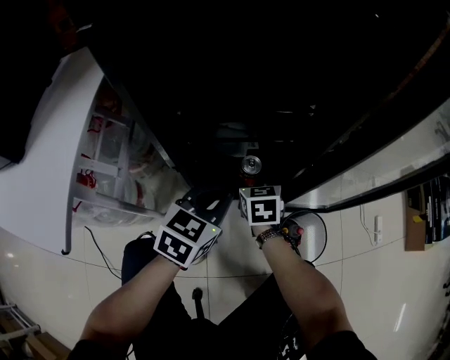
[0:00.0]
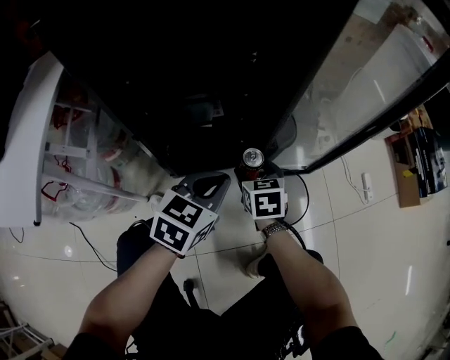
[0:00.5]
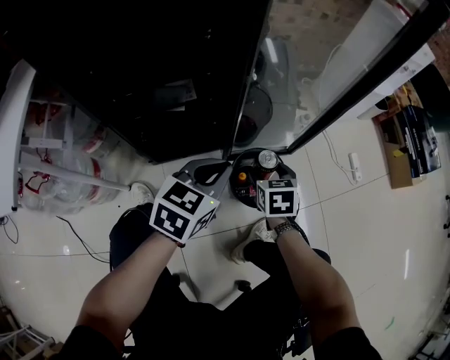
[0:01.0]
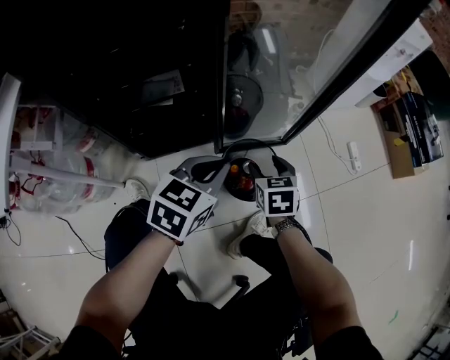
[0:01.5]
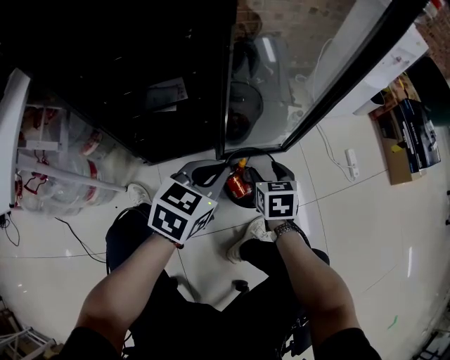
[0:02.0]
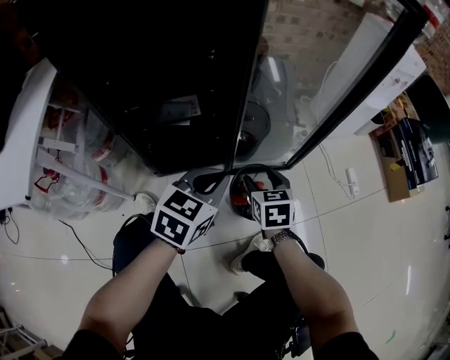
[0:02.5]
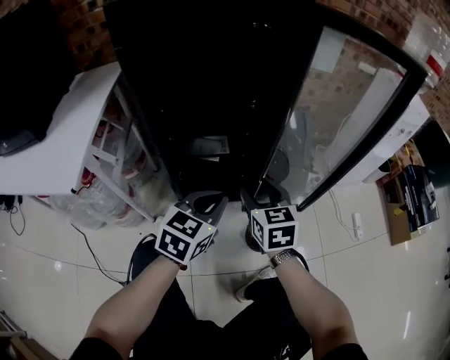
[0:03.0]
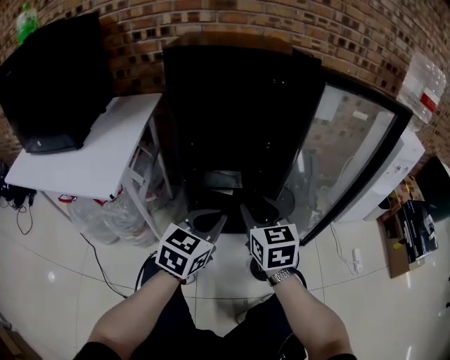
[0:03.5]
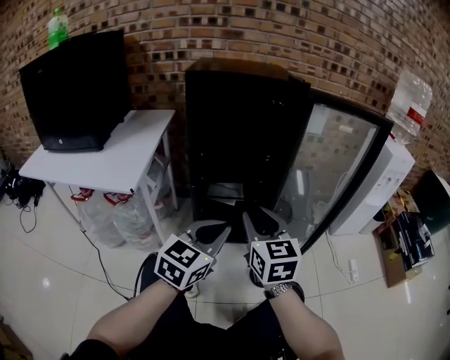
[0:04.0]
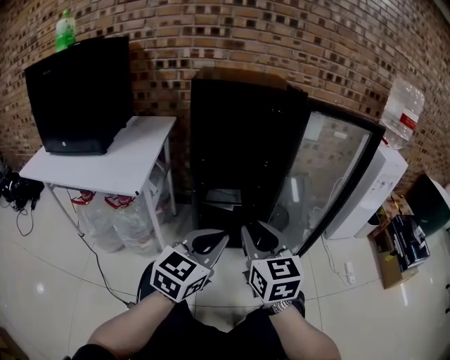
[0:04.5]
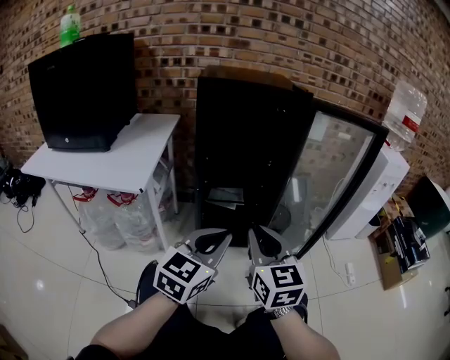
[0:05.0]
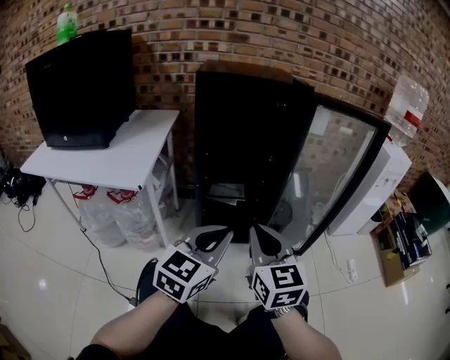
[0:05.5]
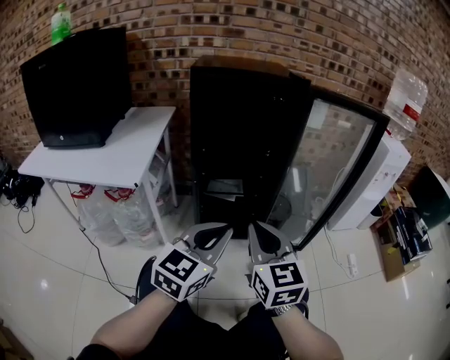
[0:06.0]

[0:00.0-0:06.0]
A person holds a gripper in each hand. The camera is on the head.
0:00.0 to 0:02.0: Both grippers move to the right, roughly 30 cm.
0:02.0 to 0:04.0: The left gripper heads upward, backward and to the left, covering some 30 cm, and changes its angle by about 30 degrees, while the right gripper goes some 40 cm upward, to the left and backward, angles its fingers upward, by about 40 degrees, and closes up.
0:04.0 to 0:06.0: The left gripper travels backward by about 5 cm; the right gripper is displaced backward by some 10 cm.

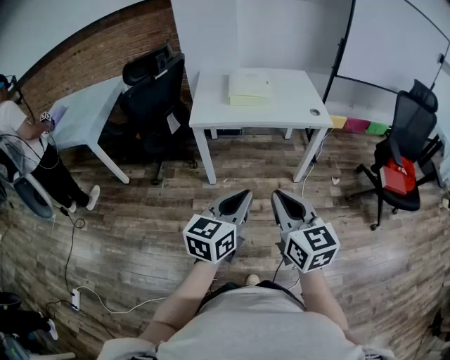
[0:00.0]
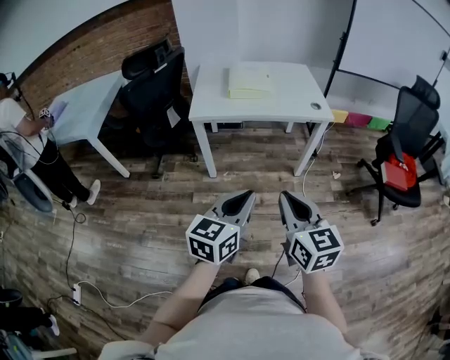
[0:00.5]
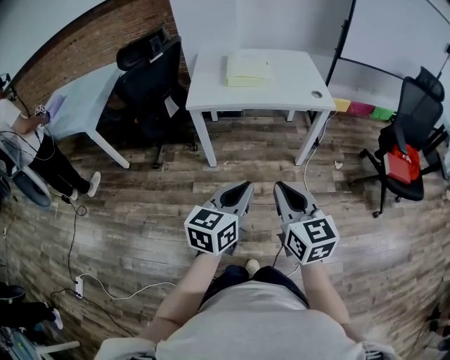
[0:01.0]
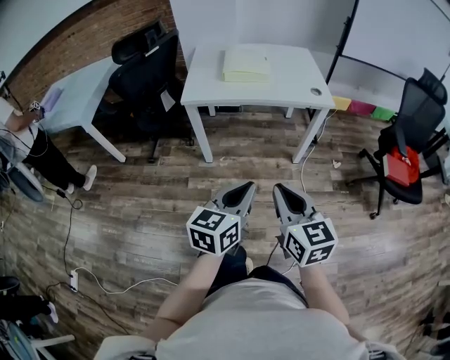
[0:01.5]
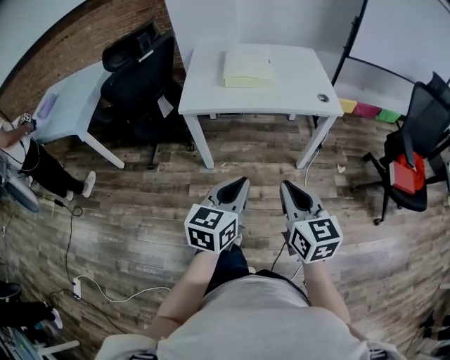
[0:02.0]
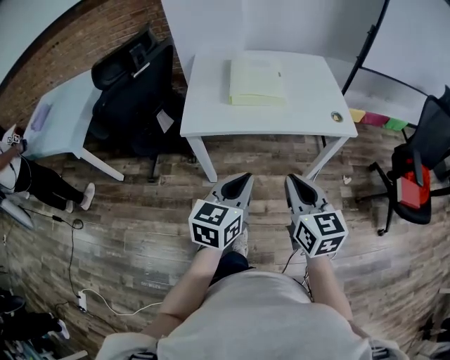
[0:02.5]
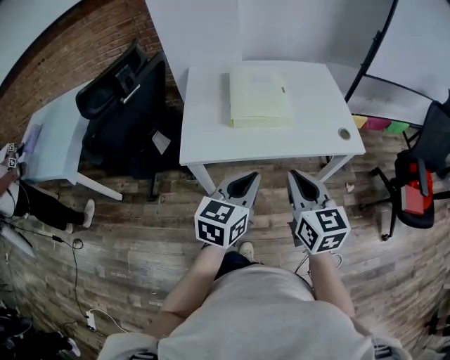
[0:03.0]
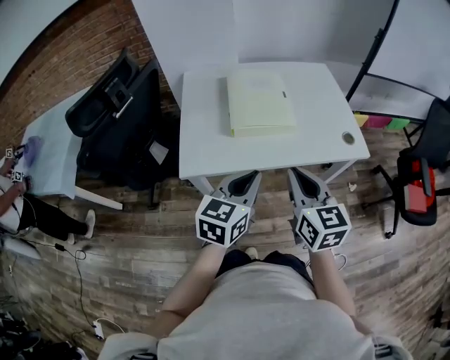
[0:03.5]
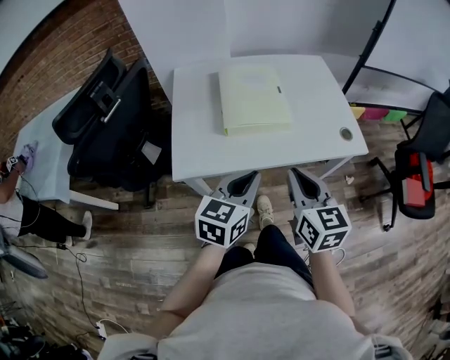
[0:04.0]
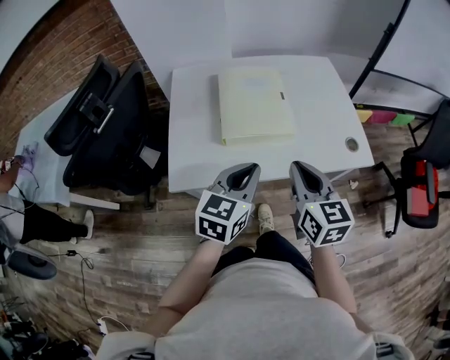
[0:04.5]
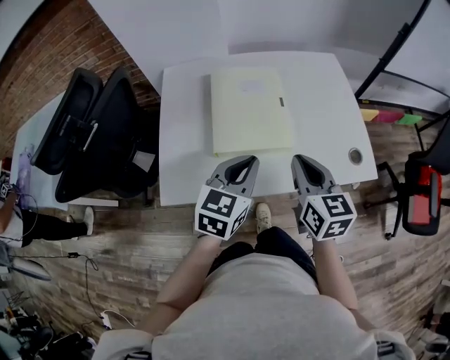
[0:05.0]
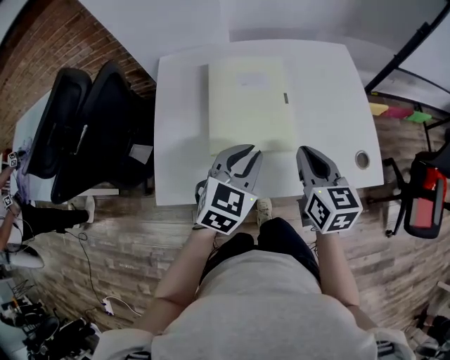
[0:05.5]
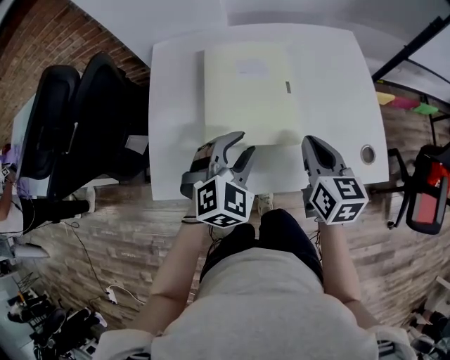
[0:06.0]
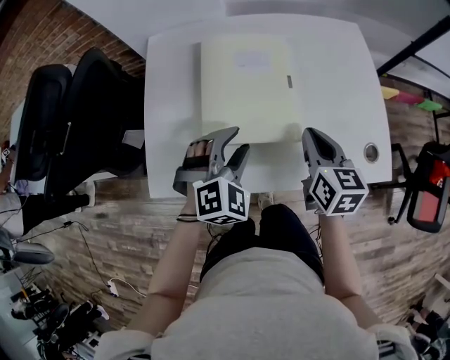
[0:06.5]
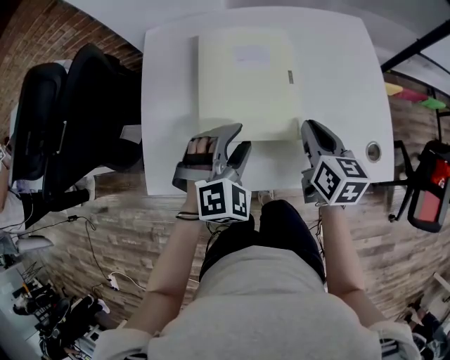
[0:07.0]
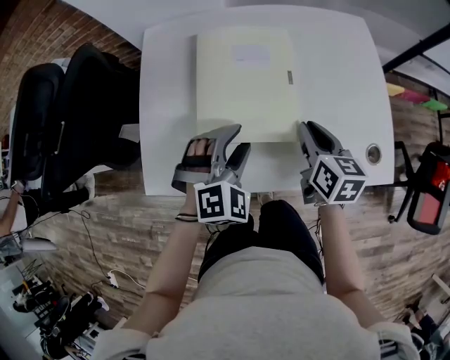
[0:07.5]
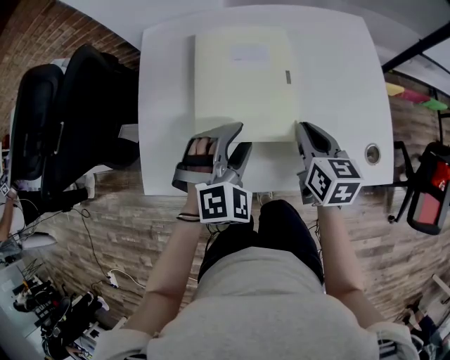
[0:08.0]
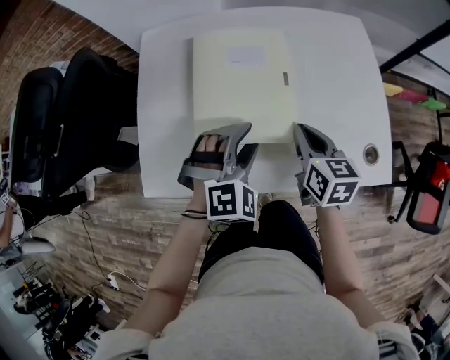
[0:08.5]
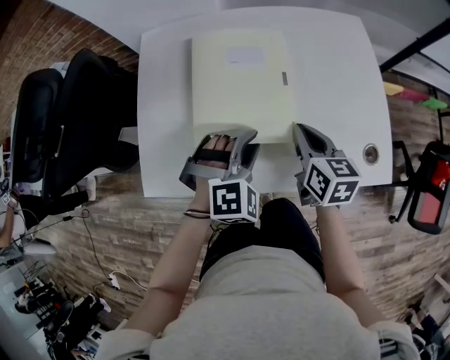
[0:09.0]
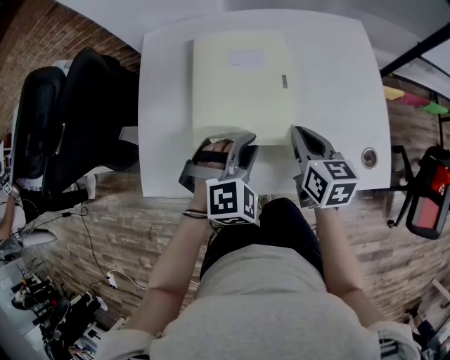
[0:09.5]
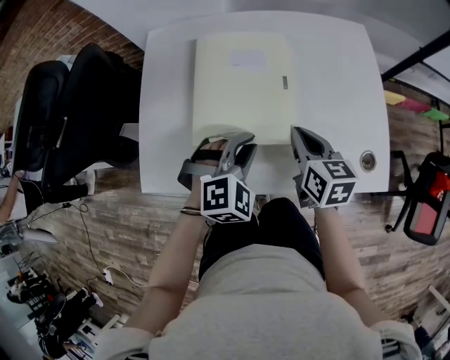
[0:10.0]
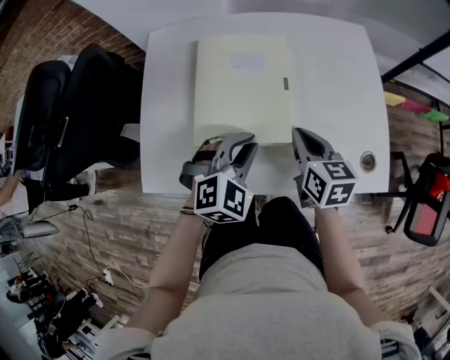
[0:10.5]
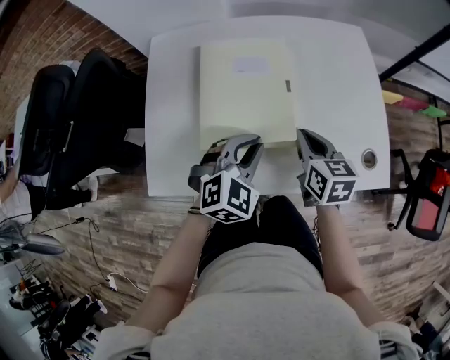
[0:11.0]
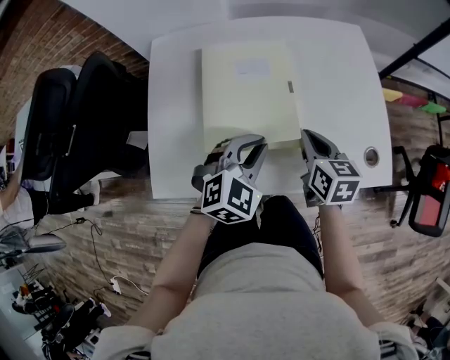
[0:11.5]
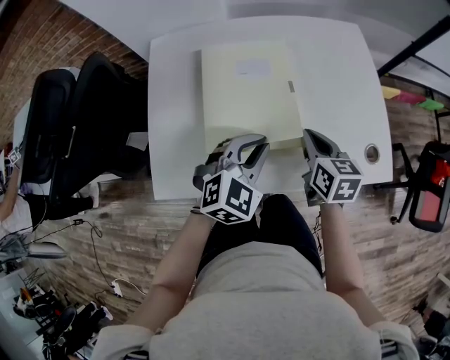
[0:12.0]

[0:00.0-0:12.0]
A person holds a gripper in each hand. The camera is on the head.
0:00.0 to 0:02.0: Both grippers move forward and downward, approximately 10 cm.
0:02.0 to 0:04.0: The two grippers go about 30 cm forward.
0:04.0 to 0:06.0: Both grippers travel together forward, roughly 20 cm. The left gripper twists approximately 40 degrees clockwise, seen from behind, and opens its fingers.
0:06.0 to 0:08.0: The right gripper shifts about 5 cm downward.
0:08.0 to 0:10.0: The left gripper closes up.
0:10.0 to 0:12.0: The left gripper rotates approximately 20 degrees.

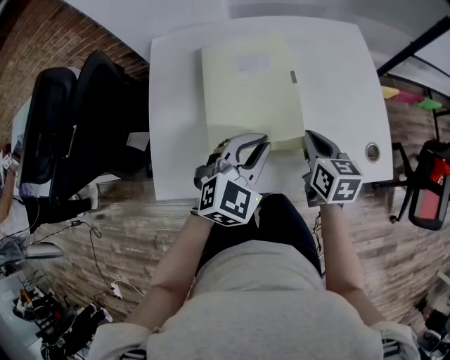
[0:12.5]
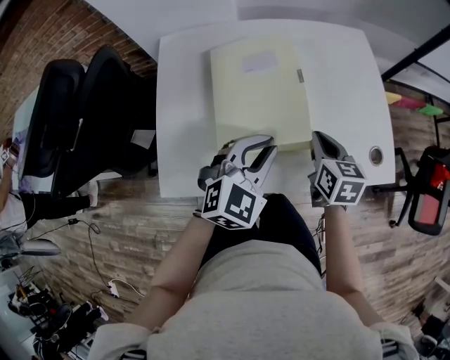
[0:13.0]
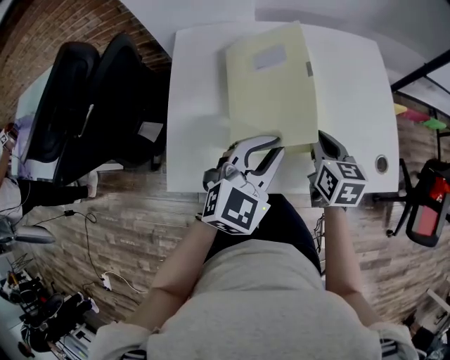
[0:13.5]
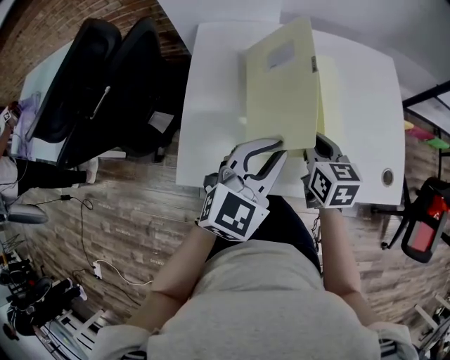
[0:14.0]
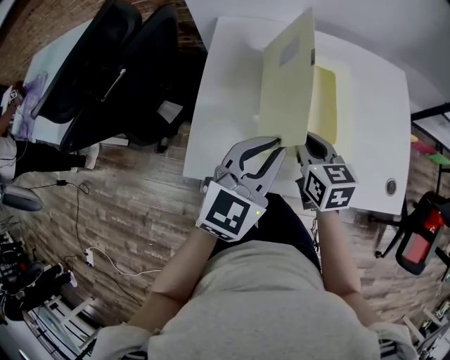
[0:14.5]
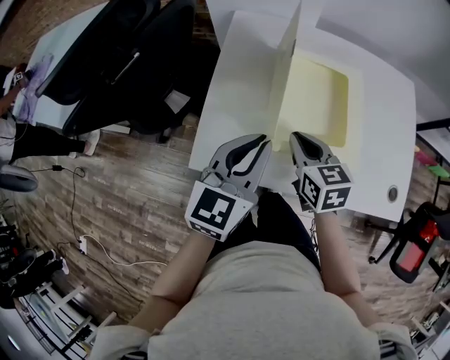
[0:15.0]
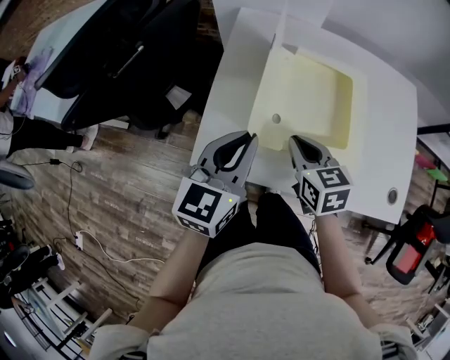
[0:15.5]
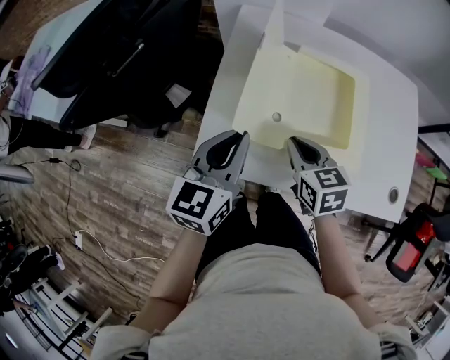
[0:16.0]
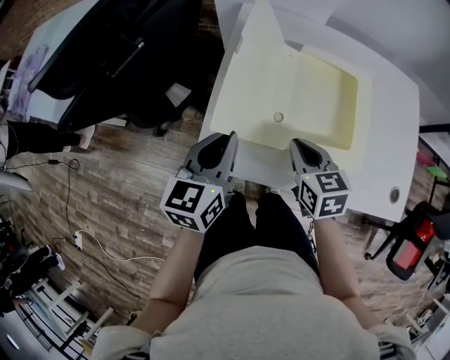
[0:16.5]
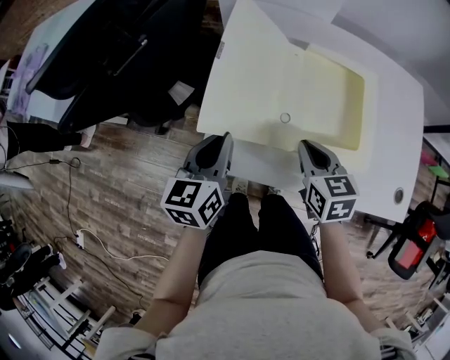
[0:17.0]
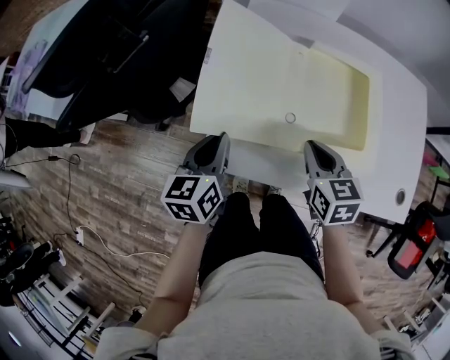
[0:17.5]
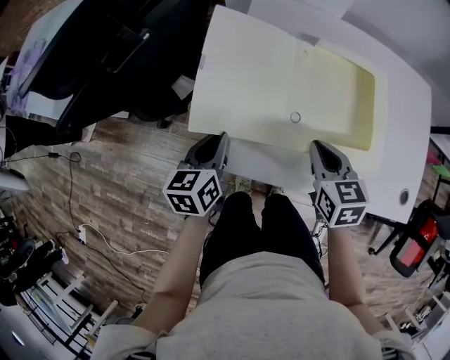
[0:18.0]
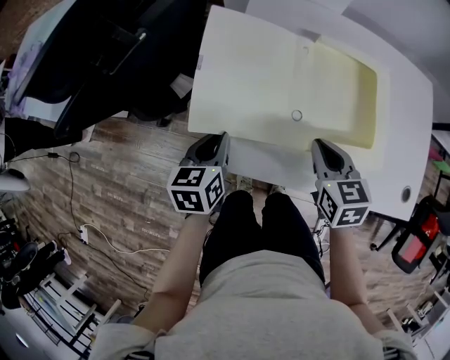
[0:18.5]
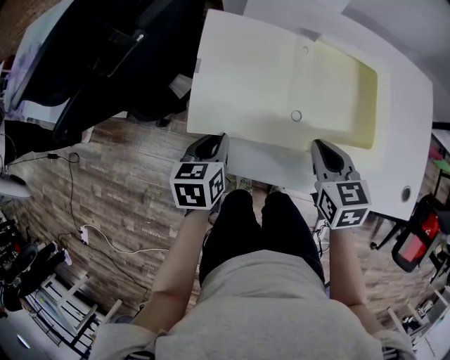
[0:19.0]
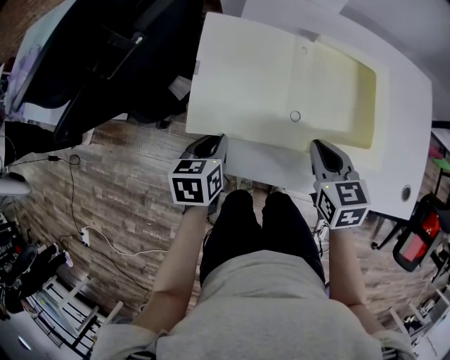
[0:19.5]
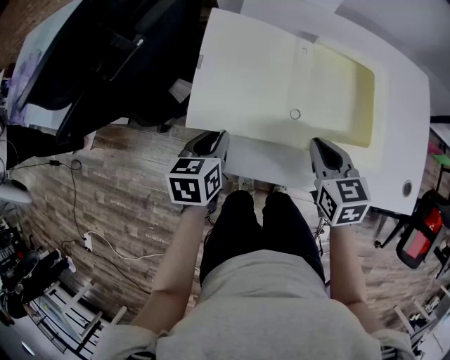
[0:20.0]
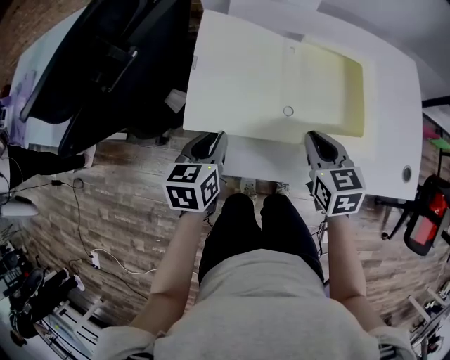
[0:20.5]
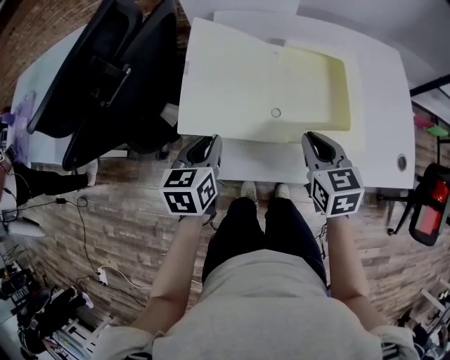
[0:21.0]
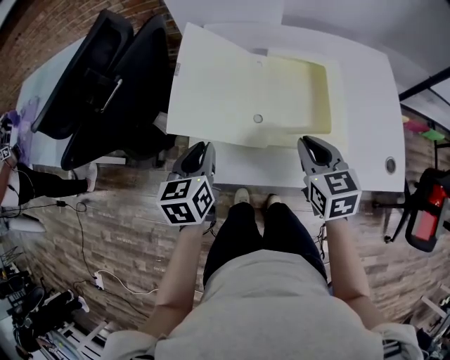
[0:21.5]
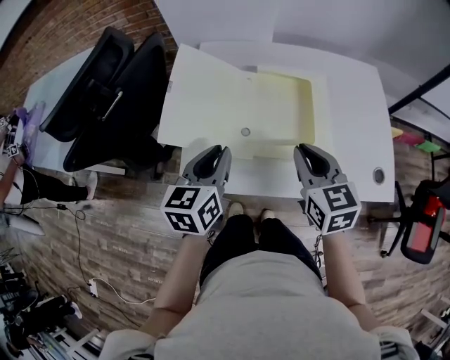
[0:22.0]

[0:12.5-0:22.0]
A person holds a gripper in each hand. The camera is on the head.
0:12.5 to 0:14.5: The right gripper moves to the left, some 15 cm, and rotates approximately 20 degrees; the left gripper shifts some 15 cm to the left and upward, and swivels about 30 degrees.
0:14.5 to 0:16.5: The left gripper shifts roughly 15 cm to the left, and rotates roughly 30 degrees; the right gripper goes approximately 5 cm to the left.
0:16.5 to 0:18.0: The left gripper travels downward and to the left by about 10 cm.
0:18.0 to 0:20.0: The grippers make only small movements.
0:20.0 to 0:22.0: The two grippers go approximately 15 cm upward and to the right. The left gripper changes its angle by some 20 degrees.
